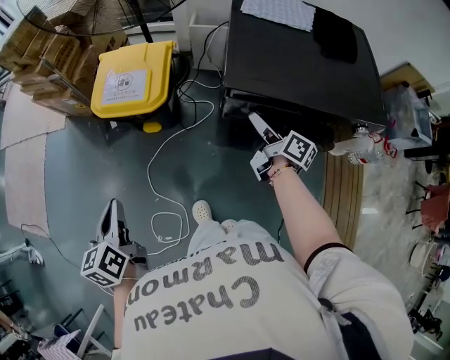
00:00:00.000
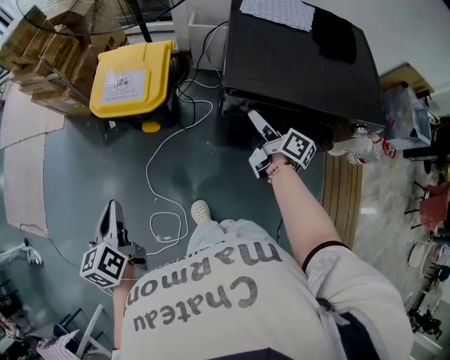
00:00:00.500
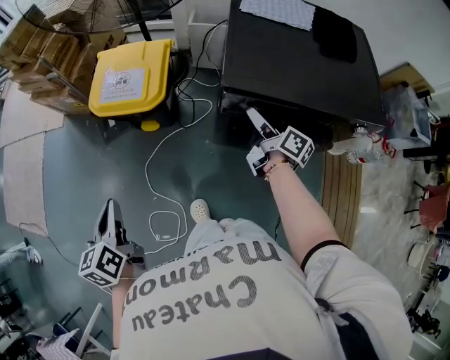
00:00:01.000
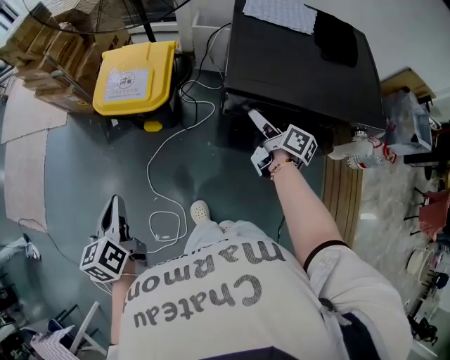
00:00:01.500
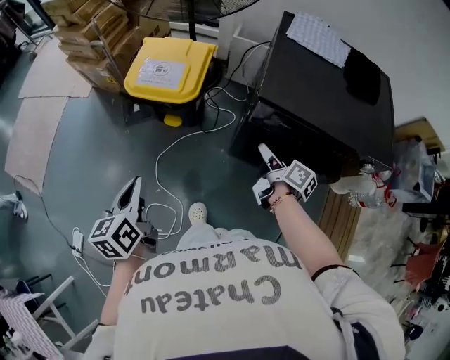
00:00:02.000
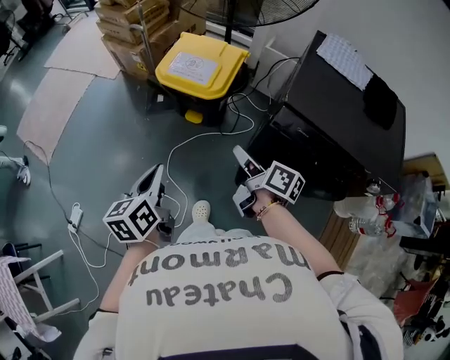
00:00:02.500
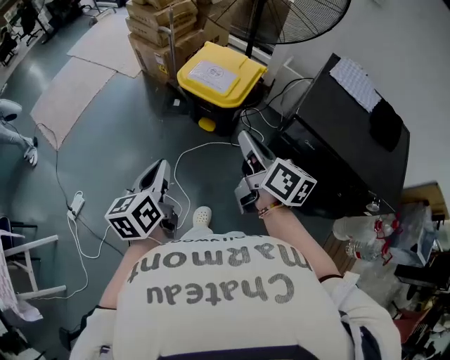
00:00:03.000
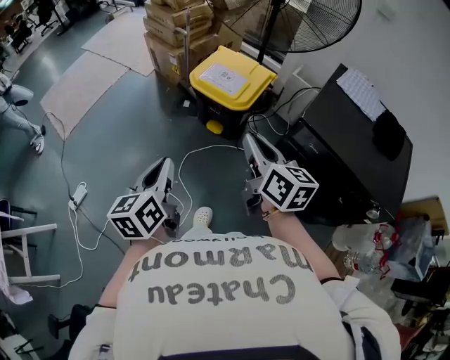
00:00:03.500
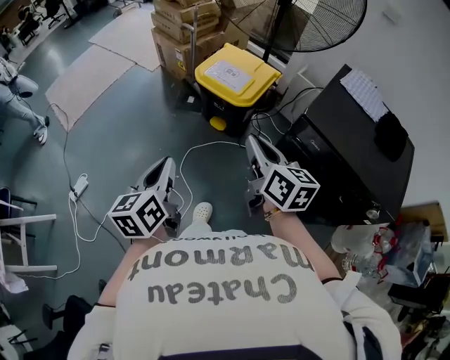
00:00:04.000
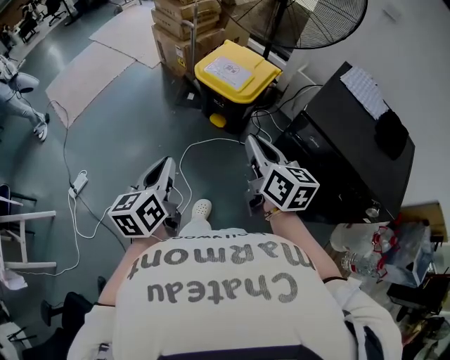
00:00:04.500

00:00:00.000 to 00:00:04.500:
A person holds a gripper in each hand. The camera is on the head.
00:00:00.000 to 00:00:02.000: The right gripper goes roughly 5 cm backward, and closes up.
00:00:02.000 to 00:00:04.500: The right gripper heads to the left and upward, covering approximately 25 cm, and rolls counterclockwise, seen from behind, by some 50 degrees, while the left gripper is displaced backward by roughly 15 cm, and swivels roughly 20 degrees.

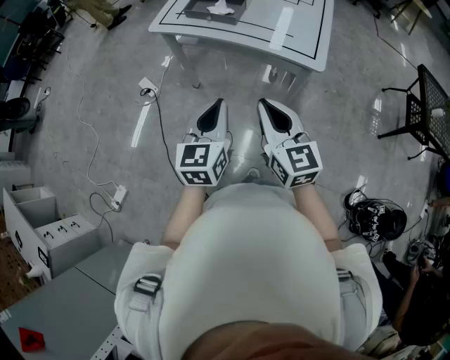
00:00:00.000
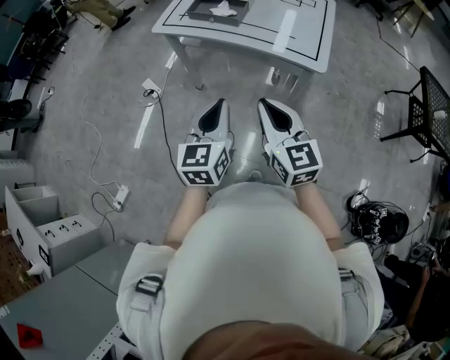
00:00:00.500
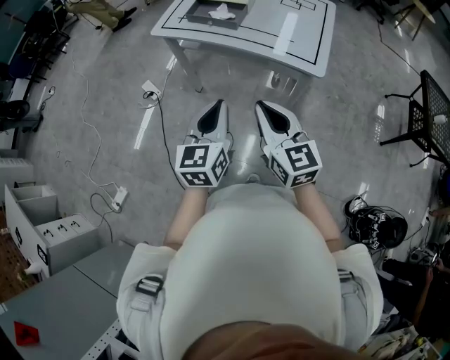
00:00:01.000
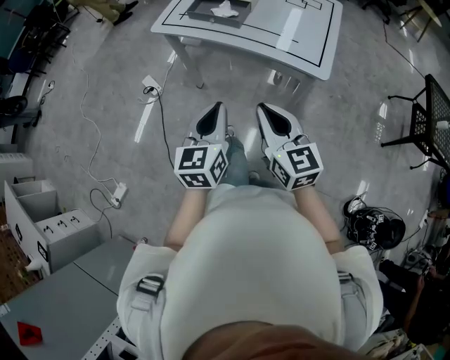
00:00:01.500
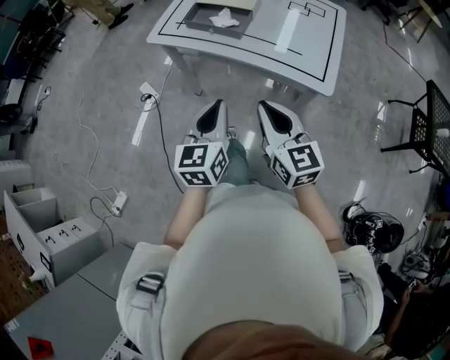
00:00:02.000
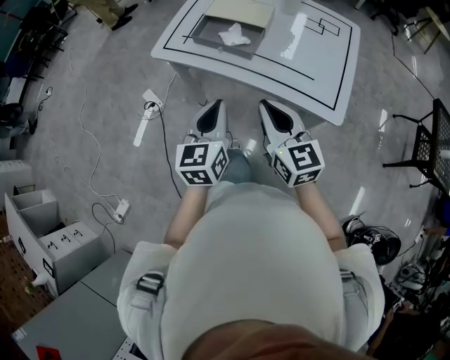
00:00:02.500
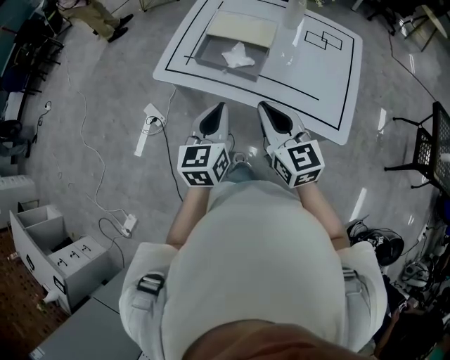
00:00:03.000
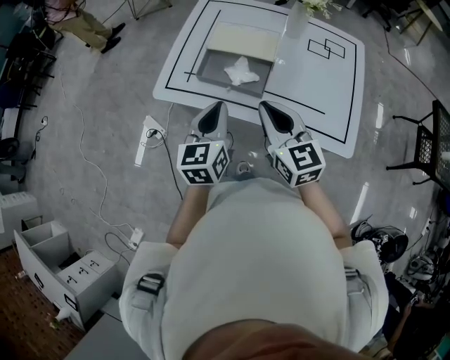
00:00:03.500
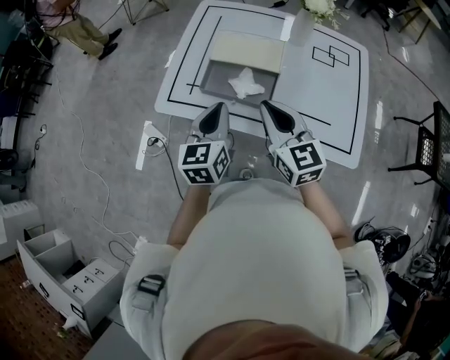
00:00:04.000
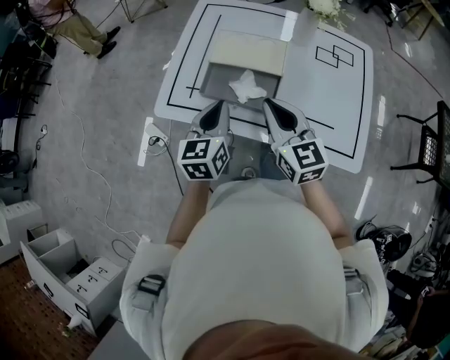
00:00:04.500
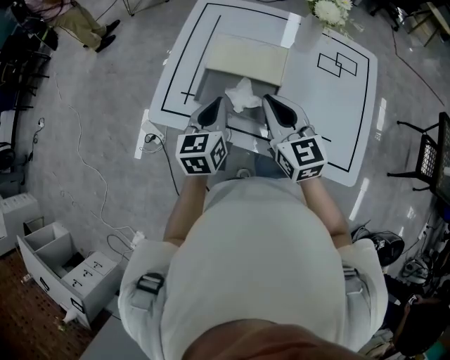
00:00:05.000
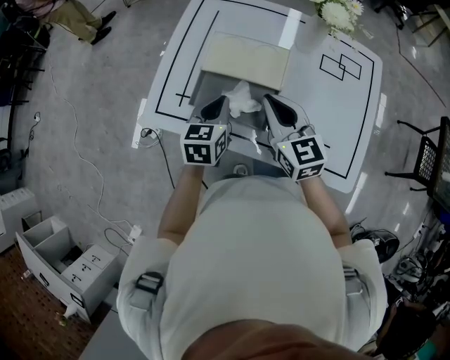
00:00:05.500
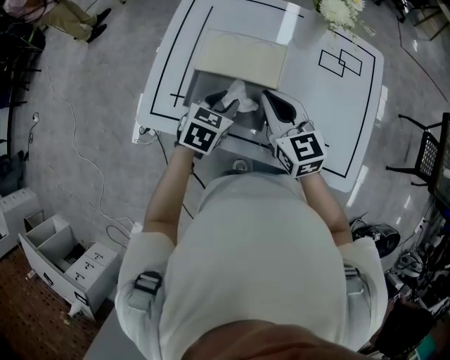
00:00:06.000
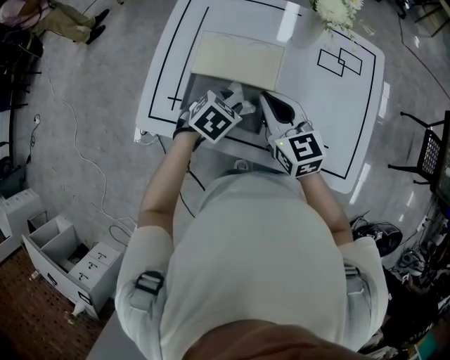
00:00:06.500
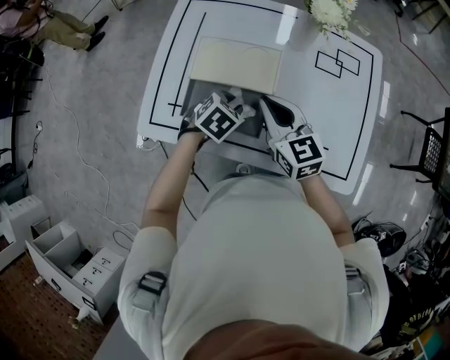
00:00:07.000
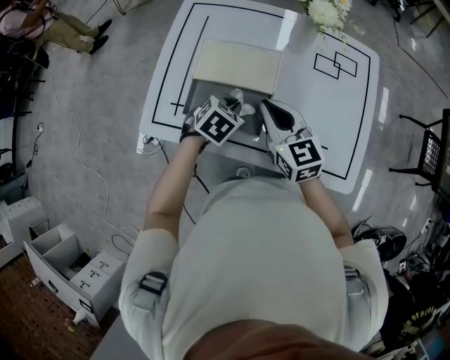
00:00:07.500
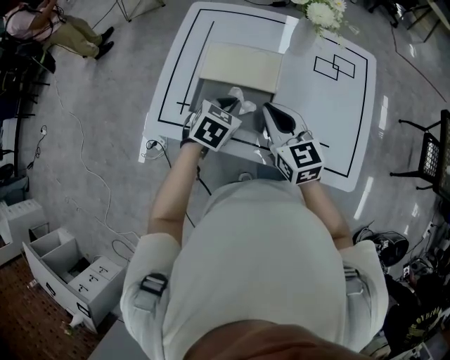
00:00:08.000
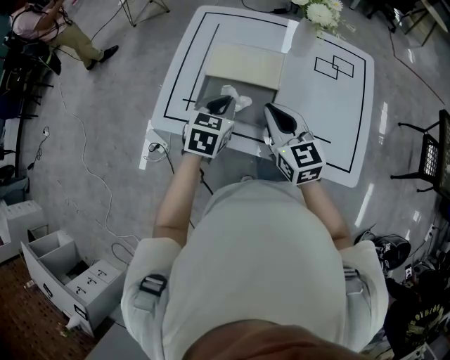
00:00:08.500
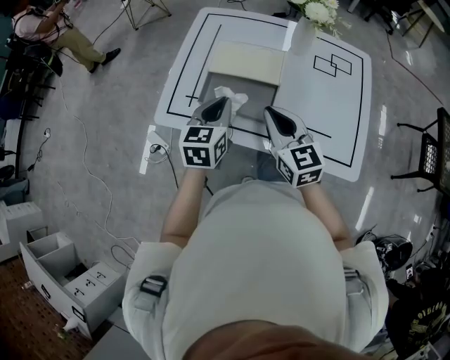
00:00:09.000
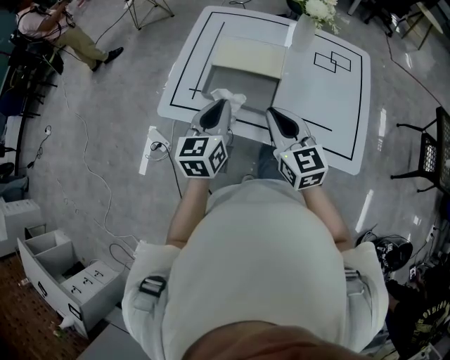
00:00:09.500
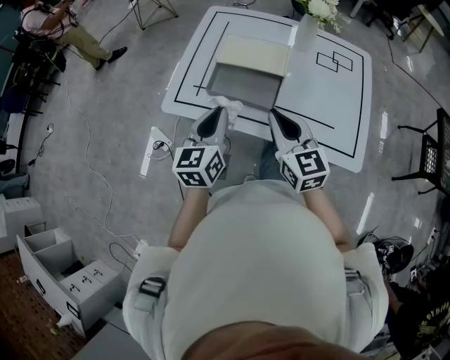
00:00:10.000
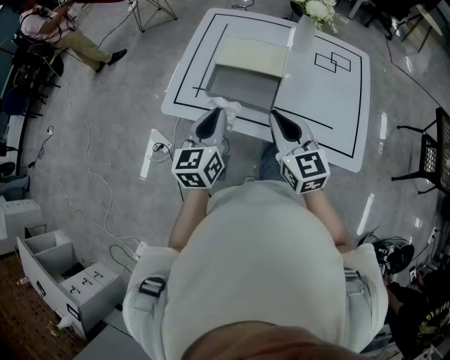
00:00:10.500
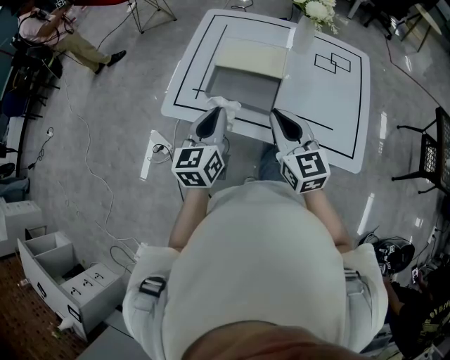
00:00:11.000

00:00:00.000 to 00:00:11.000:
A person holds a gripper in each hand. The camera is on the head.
00:00:00.000 to 00:00:02.000: The grippers both shift forward by roughly 10 cm.
00:00:02.000 to 00:00:03.500: The grippers both shift forward by approximately 25 cm.
00:00:03.500 to 00:00:05.500: The right gripper heads forward, covering some 15 cm. Meanwhile the left gripper is displaced forward and downward by about 20 cm.
00:00:05.500 to 00:00:07.500: The left gripper travels downward and to the right by some 10 cm, rotates some 40 degrees, and opens and closes again.
00:00:07.500 to 00:00:09.000: The left gripper travels upward, to the left and backward by approximately 15 cm, and tilts its fingers some 30 degrees upward. The right gripper travels backward by approximately 10 cm.
00:00:09.000 to 00:00:11.000: Both grippers move backward, about 5 cm.

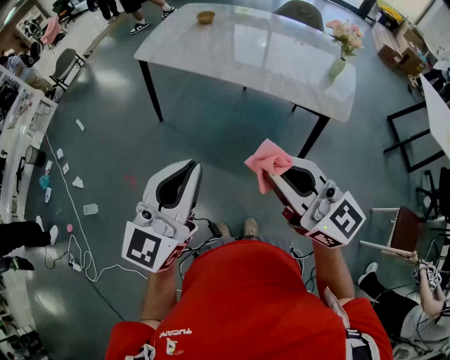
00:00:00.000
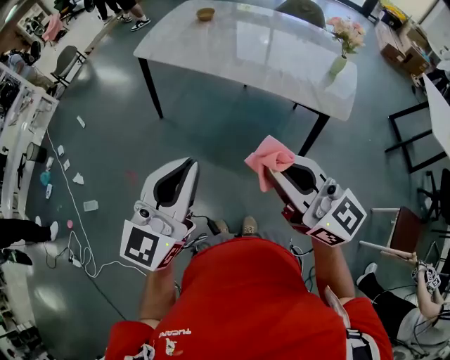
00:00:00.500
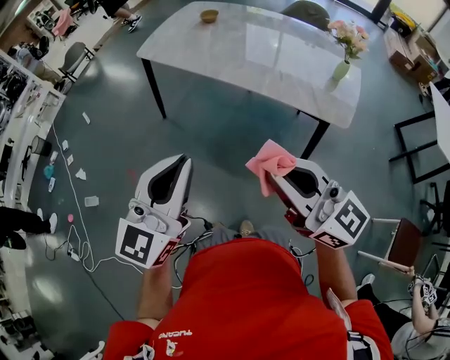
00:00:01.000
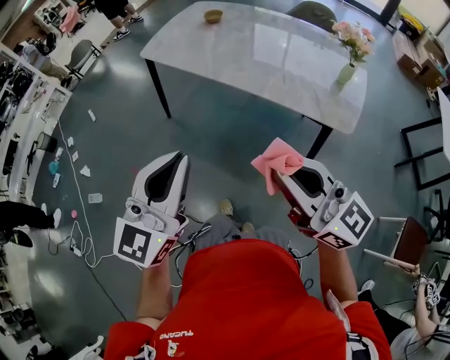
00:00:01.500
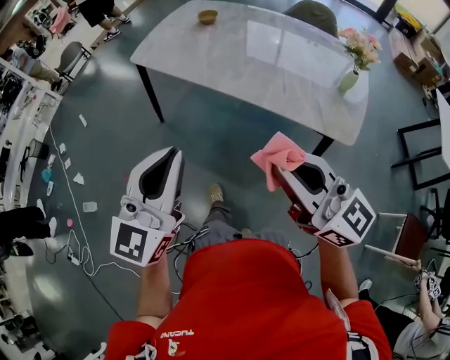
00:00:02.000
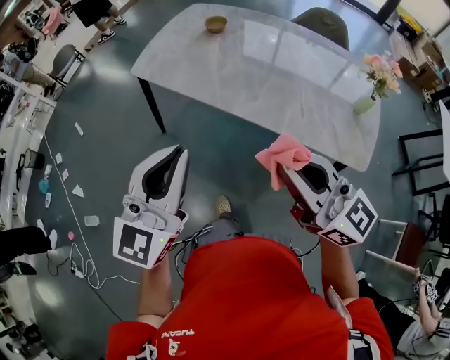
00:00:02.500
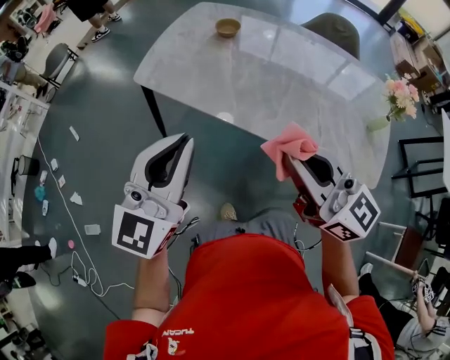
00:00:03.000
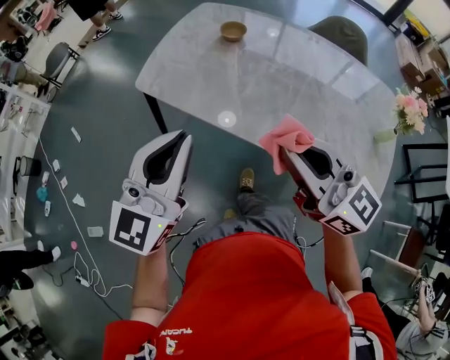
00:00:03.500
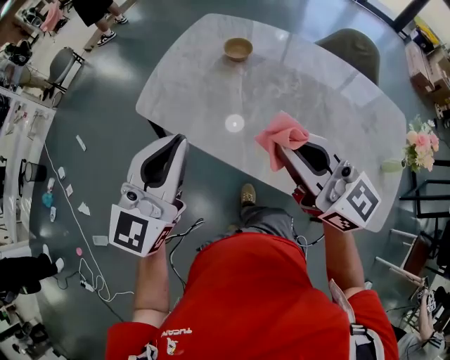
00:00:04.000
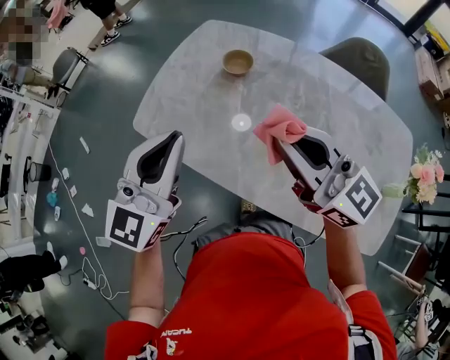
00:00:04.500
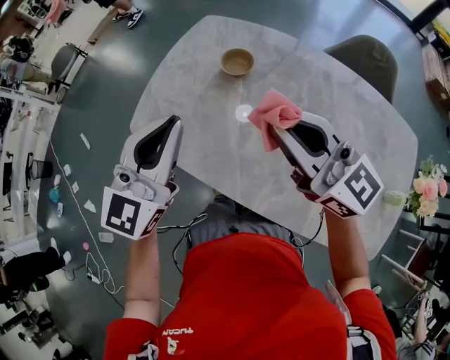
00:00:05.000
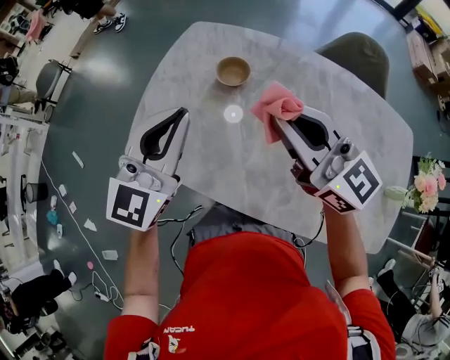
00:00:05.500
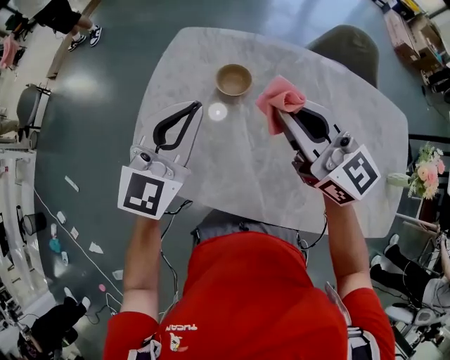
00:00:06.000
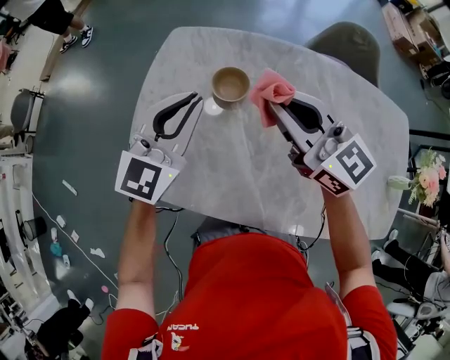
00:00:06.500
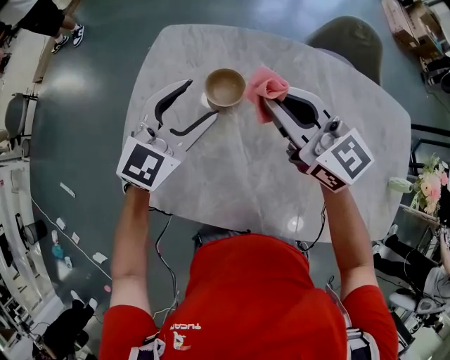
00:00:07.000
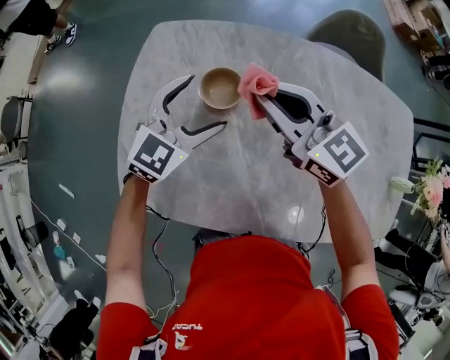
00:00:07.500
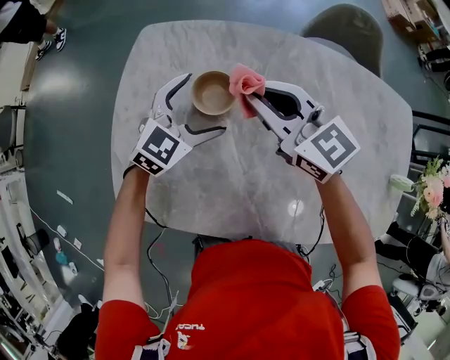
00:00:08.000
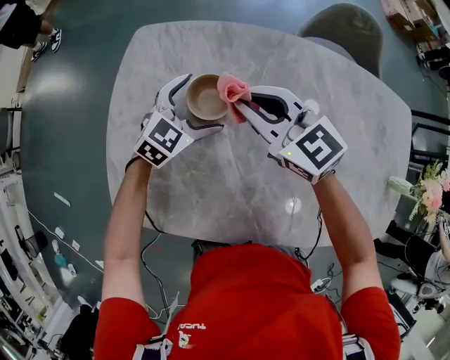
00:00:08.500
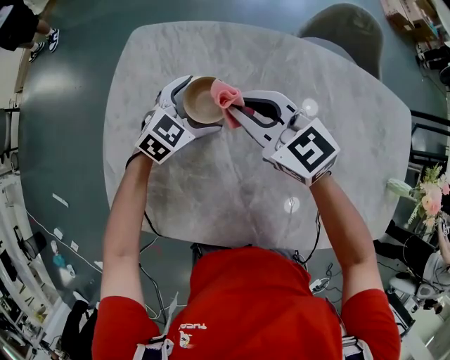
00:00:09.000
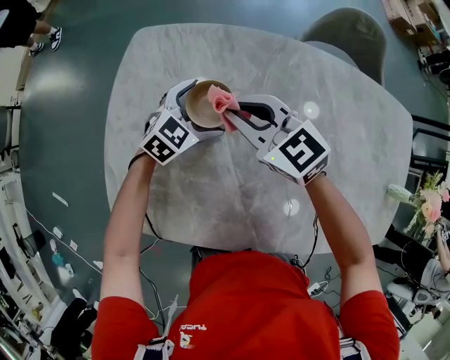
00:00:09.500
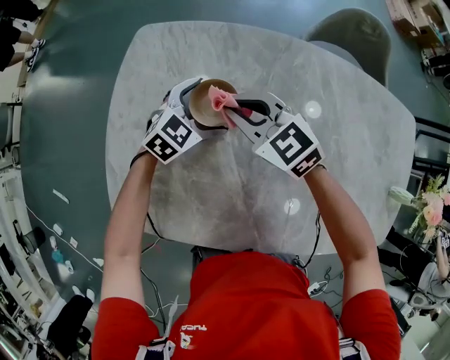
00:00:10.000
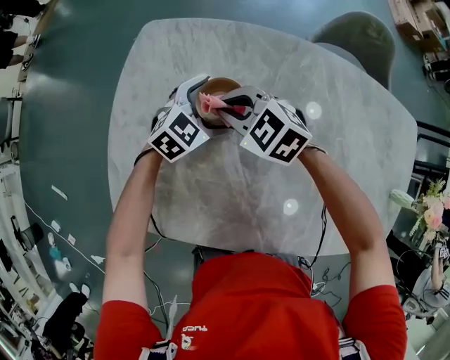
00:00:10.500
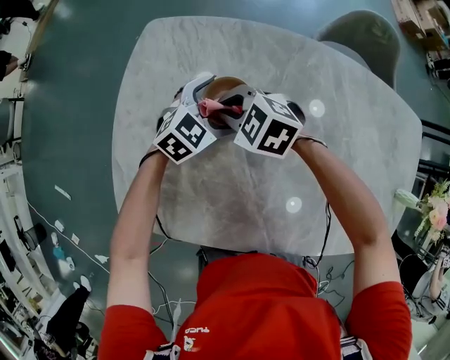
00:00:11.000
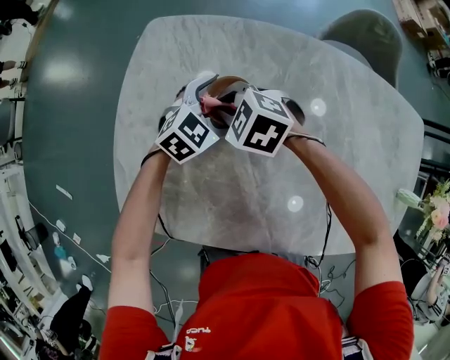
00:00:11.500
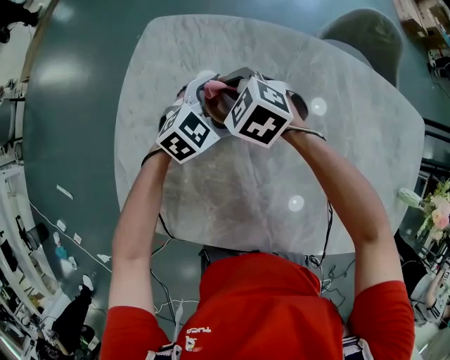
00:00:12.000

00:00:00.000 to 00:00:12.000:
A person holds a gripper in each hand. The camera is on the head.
00:00:00.000 to 00:00:02.000: The right gripper travels forward and to the right by about 15 cm; the left gripper heads forward, covering approximately 10 cm.
00:00:02.000 to 00:00:04.000: The two grippers travel together, forward, approximately 40 cm.
00:00:04.000 to 00:00:06.000: Both grippers move forward, approximately 30 cm.
00:00:06.000 to 00:00:08.000: The left gripper moves downward and forward, about 25 cm, swivels some 30 degrees, and opens, while the right gripper travels forward and downward by roughly 20 cm.
00:00:08.000 to 00:00:10.000: Both grippers travel together downward, about 10 cm. The right gripper rotates about 20 degrees.
00:00:10.000 to 00:00:12.000: The right gripper moves downward, about 5 cm, and turns by some 30 degrees.
